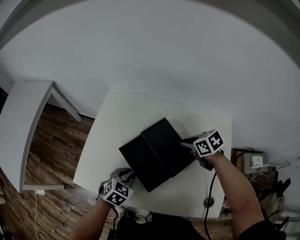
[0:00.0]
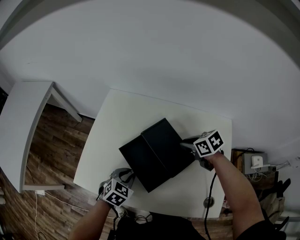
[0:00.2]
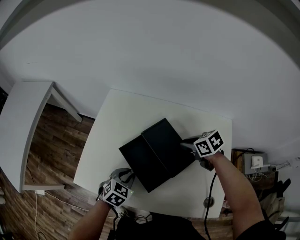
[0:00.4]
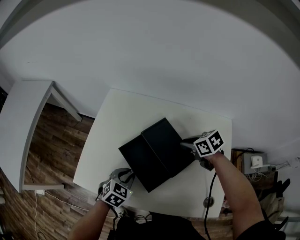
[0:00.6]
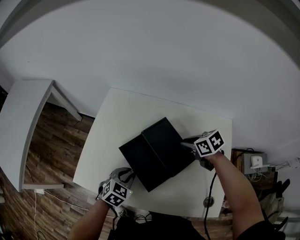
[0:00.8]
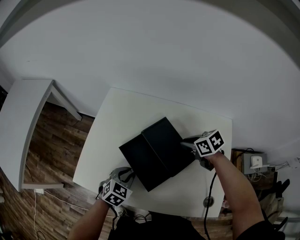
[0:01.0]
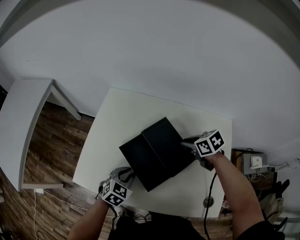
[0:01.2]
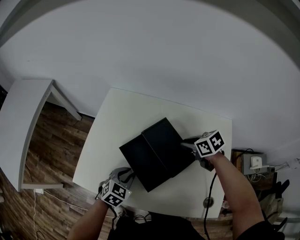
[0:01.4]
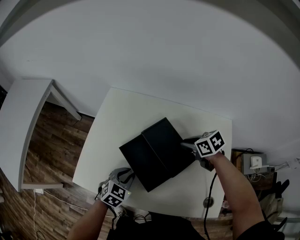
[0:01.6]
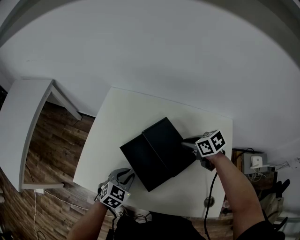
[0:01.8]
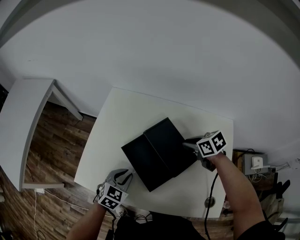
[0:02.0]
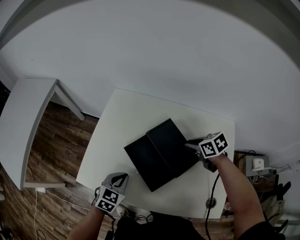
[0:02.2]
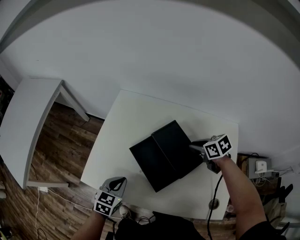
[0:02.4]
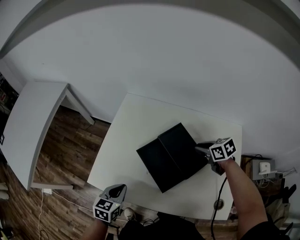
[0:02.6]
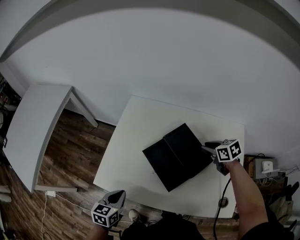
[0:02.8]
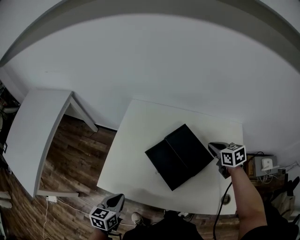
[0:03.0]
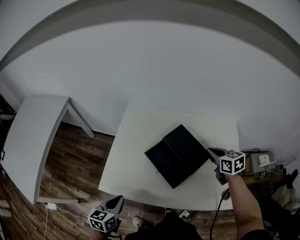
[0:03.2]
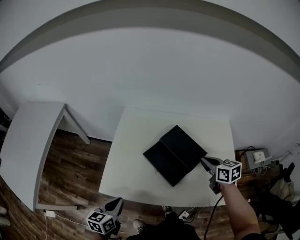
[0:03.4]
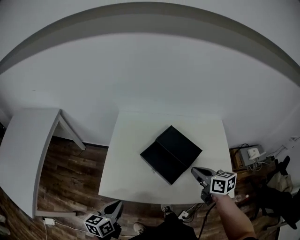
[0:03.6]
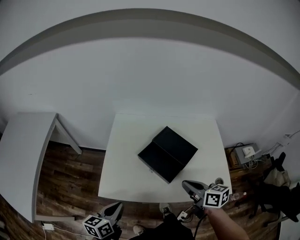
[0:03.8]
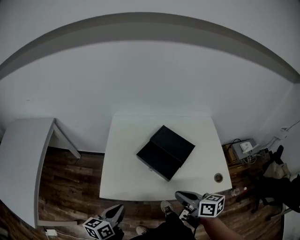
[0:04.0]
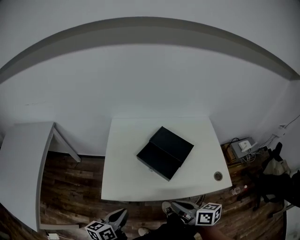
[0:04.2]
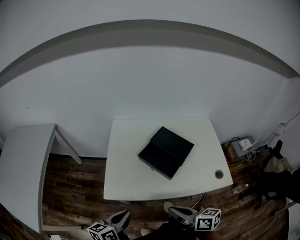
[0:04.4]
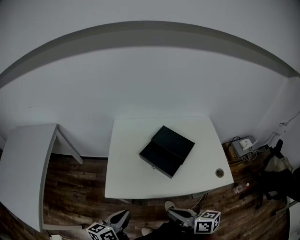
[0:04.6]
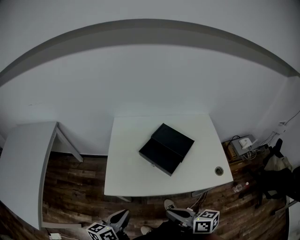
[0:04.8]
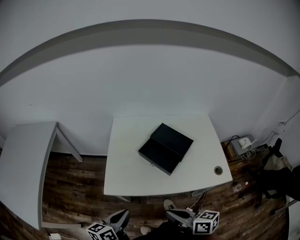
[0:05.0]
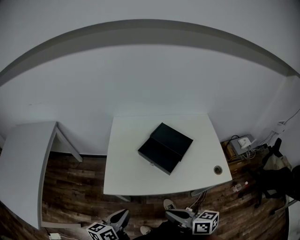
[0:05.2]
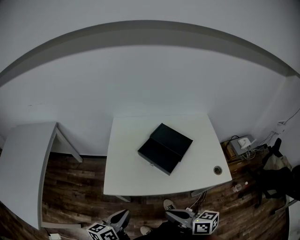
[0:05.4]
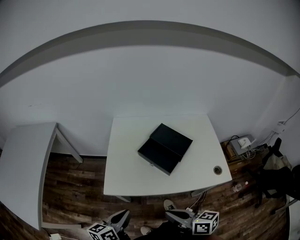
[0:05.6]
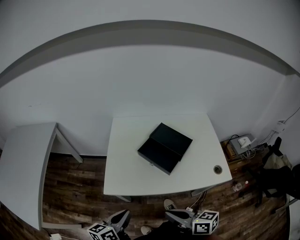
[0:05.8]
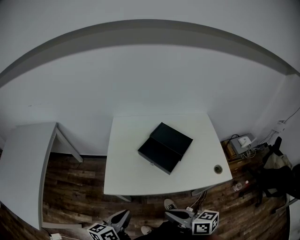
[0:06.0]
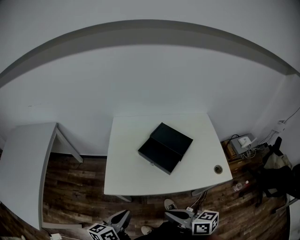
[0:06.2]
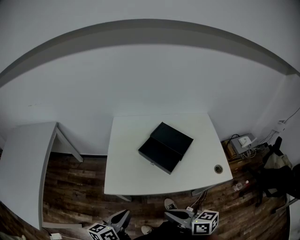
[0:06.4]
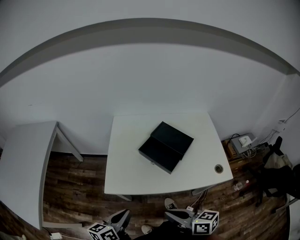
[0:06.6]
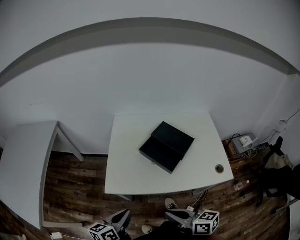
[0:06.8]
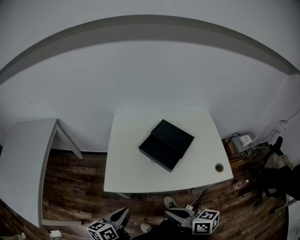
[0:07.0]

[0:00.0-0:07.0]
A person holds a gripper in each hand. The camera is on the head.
0:00.0 to 0:01.4: The grippers move only a little.
0:01.4 to 0:02.8: The left gripper travels to the left and backward by some 15 cm, and rotates about 40 degrees.
0:02.8 to 0:04.2: The right gripper is displaced backward and to the left by roughly 40 cm, turns by approximately 40 degrees, and closes up; the left gripper heads upward and backward, covering roughly 10 cm, and rotates some 30 degrees.
0:04.2 to 0:05.6: The right gripper moves backward and to the left, roughly 10 cm.
0:05.6 to 0:07.0: Neither gripper changes place.

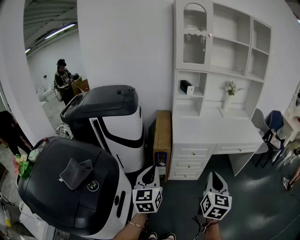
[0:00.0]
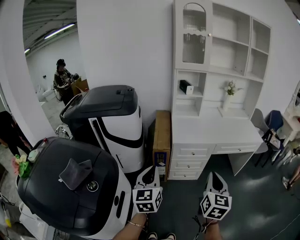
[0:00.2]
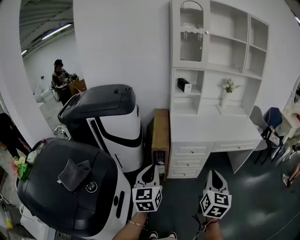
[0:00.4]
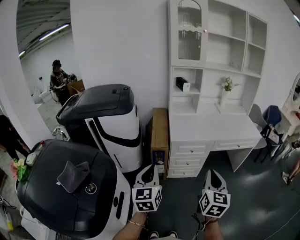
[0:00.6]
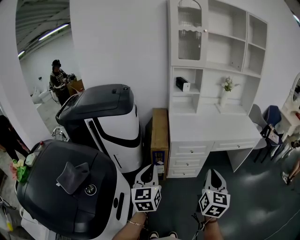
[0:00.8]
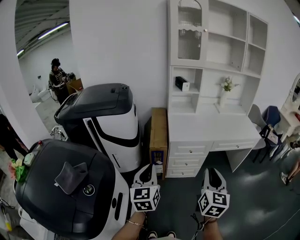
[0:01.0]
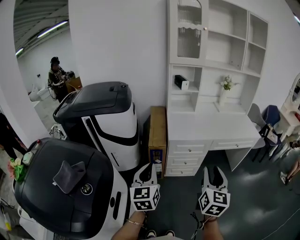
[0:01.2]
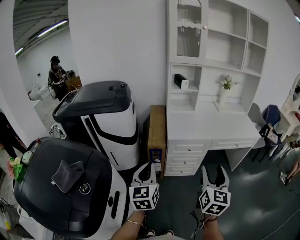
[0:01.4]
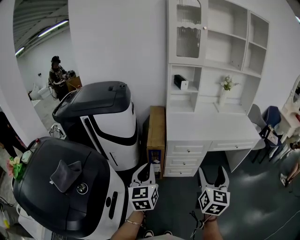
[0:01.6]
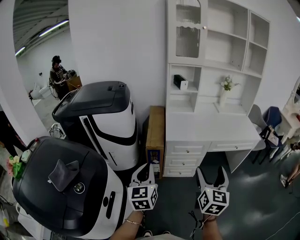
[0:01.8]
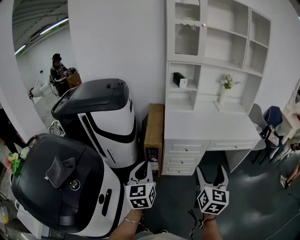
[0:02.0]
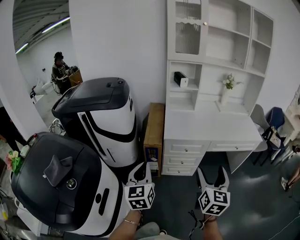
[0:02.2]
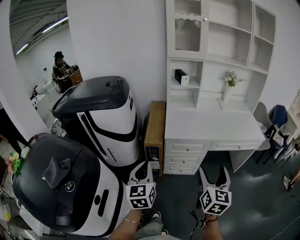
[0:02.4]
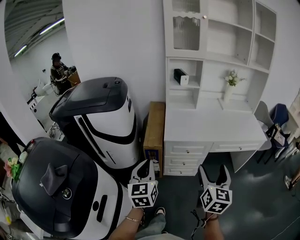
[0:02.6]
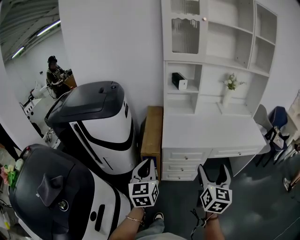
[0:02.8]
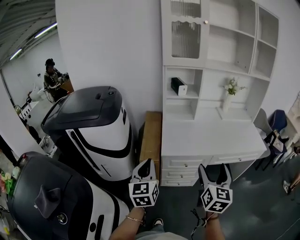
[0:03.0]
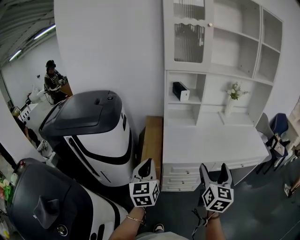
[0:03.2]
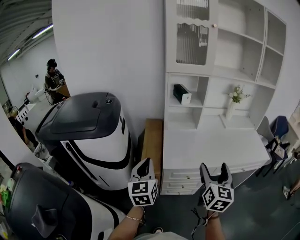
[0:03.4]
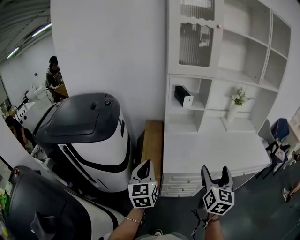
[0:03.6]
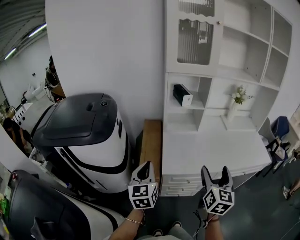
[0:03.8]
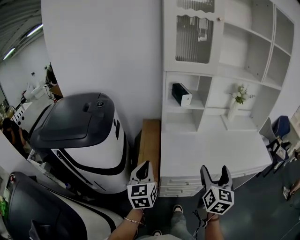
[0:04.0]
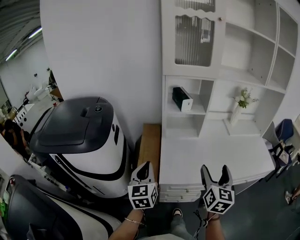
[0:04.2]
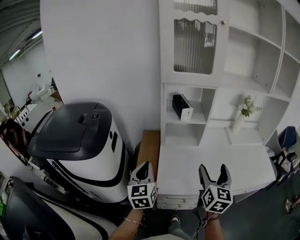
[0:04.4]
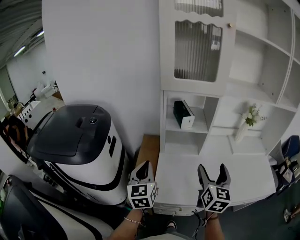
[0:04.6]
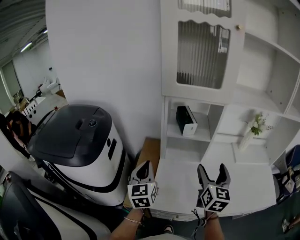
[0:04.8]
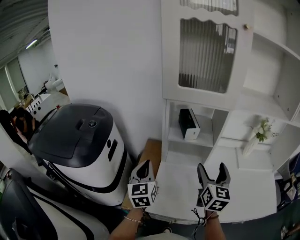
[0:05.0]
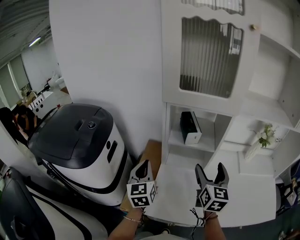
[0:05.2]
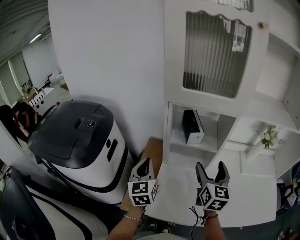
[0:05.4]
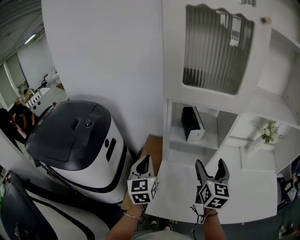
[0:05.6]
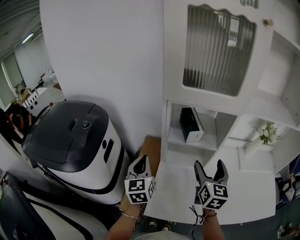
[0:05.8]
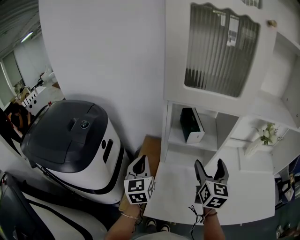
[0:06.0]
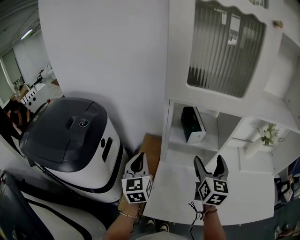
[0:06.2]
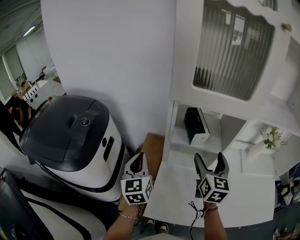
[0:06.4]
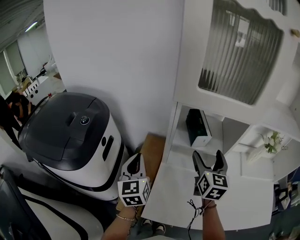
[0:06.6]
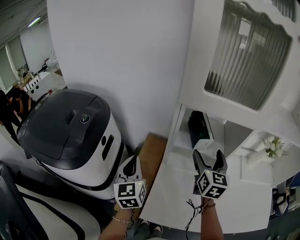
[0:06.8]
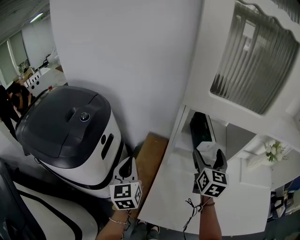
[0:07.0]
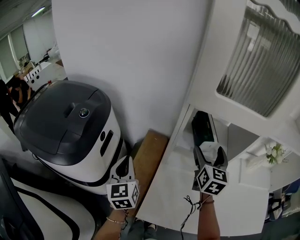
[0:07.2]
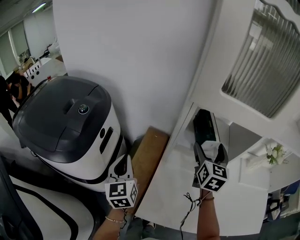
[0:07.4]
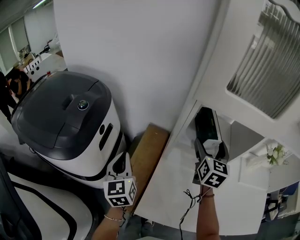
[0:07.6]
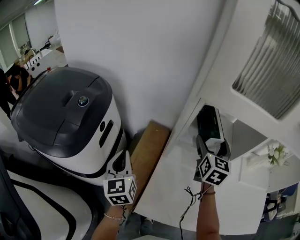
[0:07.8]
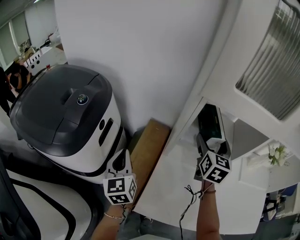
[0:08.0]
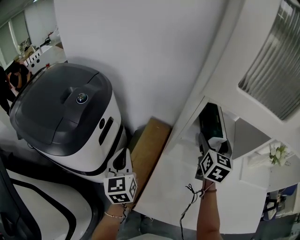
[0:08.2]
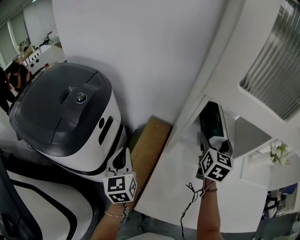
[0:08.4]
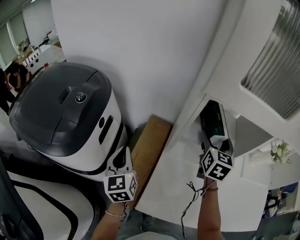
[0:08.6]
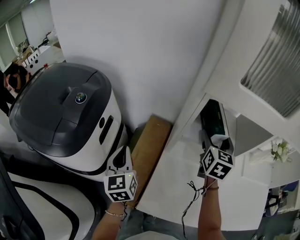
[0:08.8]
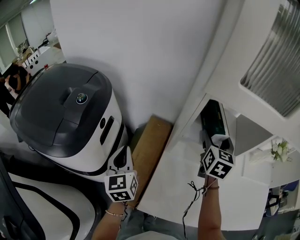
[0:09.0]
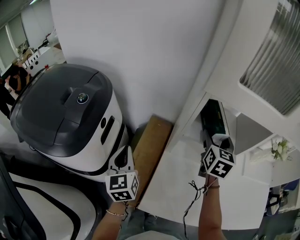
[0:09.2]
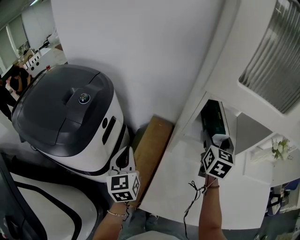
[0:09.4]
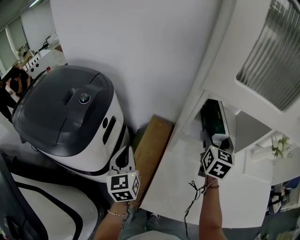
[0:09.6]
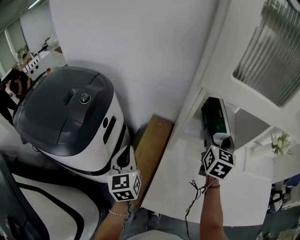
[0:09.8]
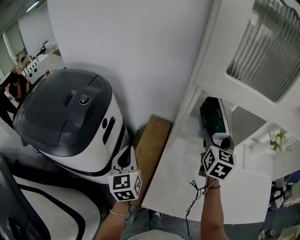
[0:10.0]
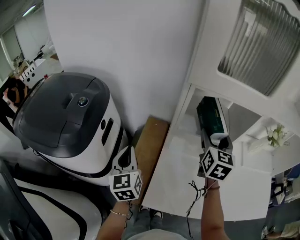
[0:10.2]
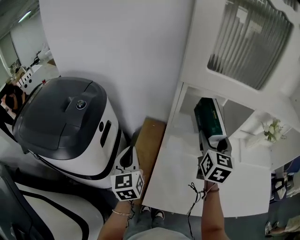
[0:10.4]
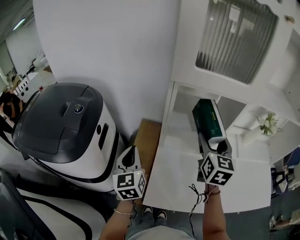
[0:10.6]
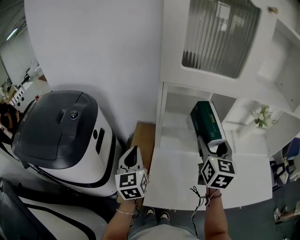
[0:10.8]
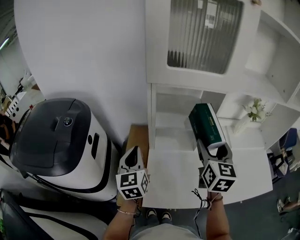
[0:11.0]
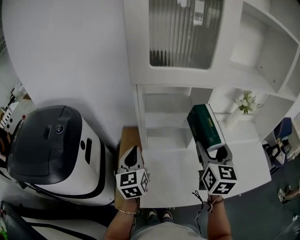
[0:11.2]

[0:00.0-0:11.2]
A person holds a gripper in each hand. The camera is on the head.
0:00.0 to 0:01.6: The right gripper opens up.
0:01.6 to 0:03.2: The grippers both shift forward by some 20 cm.
0:03.2 to 0:04.8: Both grippers travel together forward, approximately 35 cm.
0:04.8 to 0:06.4: The two grippers go some 15 cm forward.
0:06.4 to 0:08.0: The right gripper is displaced forward by roughly 10 cm. Meanwhile the left gripper goes some 10 cm to the left and downward.
0:08.0 to 0:09.6: Both grippers stay about where they are.
0:09.6 to 0:11.2: The right gripper heads backward and to the right, covering about 20 cm. Meanwhile the left gripper travels to the right by roughly 15 cm, and turns by approximately 20 degrees.

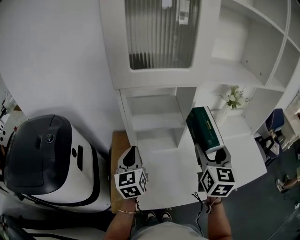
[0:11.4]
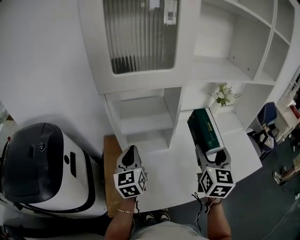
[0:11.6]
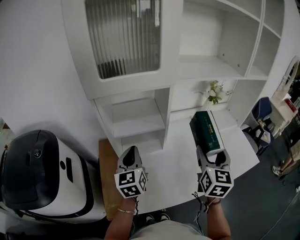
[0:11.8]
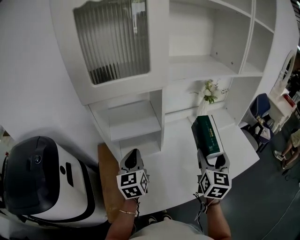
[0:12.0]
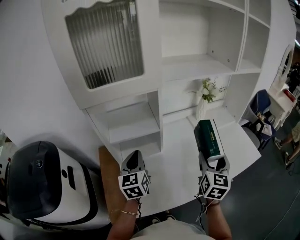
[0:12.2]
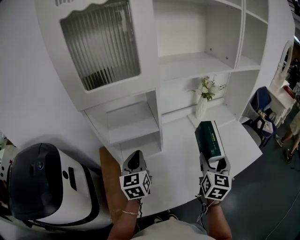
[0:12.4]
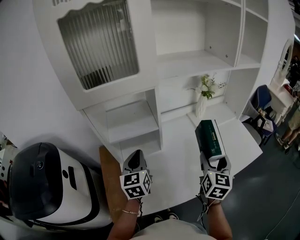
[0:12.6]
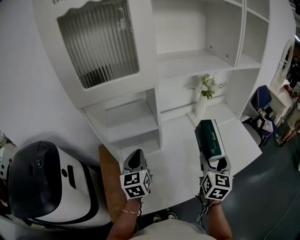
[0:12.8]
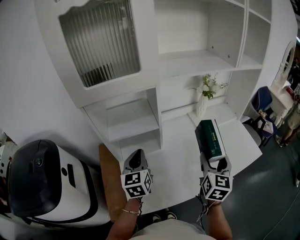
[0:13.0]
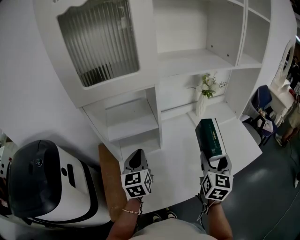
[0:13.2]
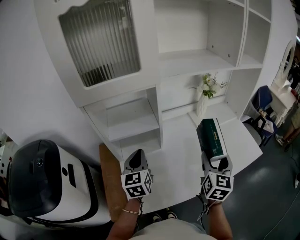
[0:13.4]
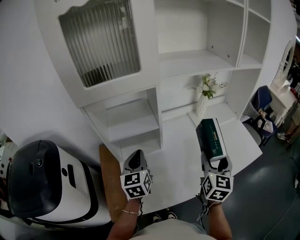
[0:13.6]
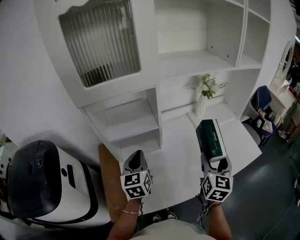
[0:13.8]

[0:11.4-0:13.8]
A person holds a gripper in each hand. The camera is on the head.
0:11.4 to 0:12.6: The right gripper is displaced to the right and downward by approximately 15 cm; the left gripper is displaced to the right by about 10 cm.
0:12.6 to 0:13.8: Both grippers stay about where they are.

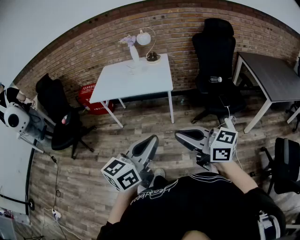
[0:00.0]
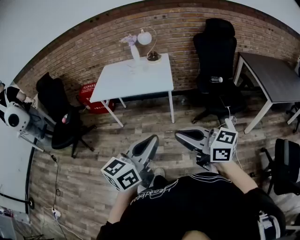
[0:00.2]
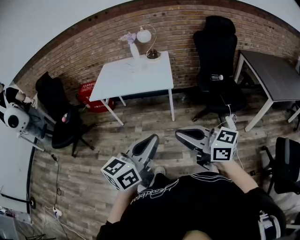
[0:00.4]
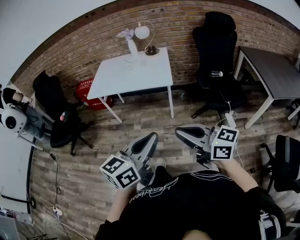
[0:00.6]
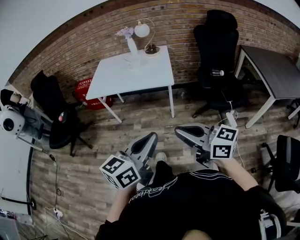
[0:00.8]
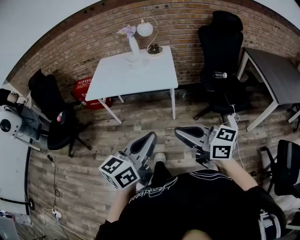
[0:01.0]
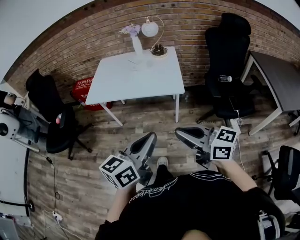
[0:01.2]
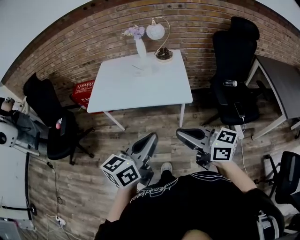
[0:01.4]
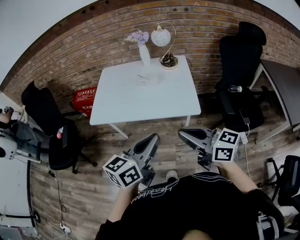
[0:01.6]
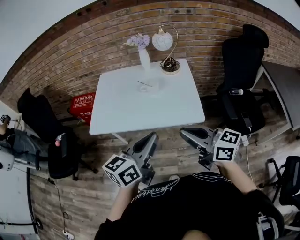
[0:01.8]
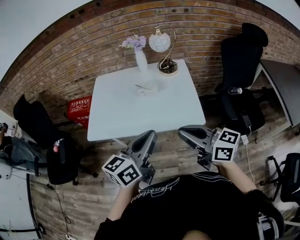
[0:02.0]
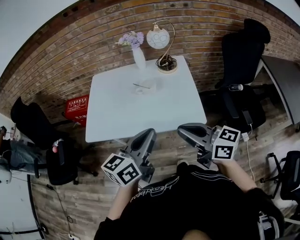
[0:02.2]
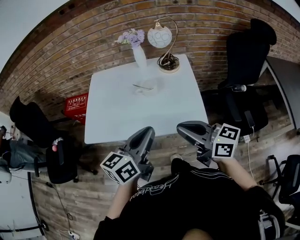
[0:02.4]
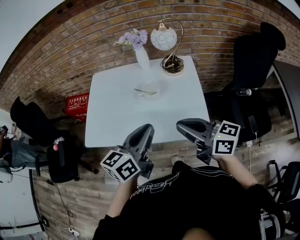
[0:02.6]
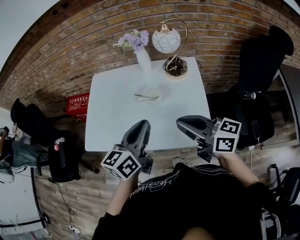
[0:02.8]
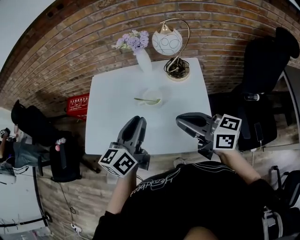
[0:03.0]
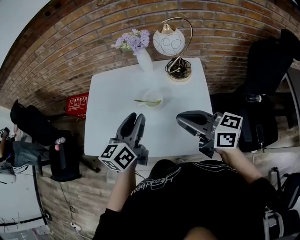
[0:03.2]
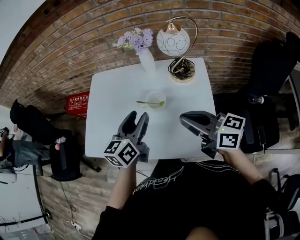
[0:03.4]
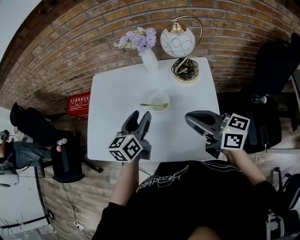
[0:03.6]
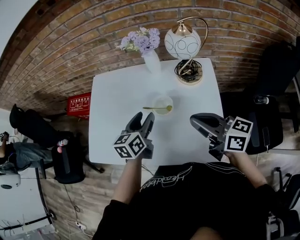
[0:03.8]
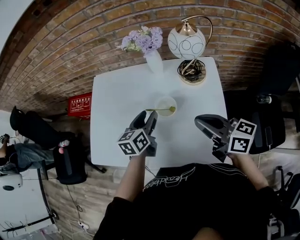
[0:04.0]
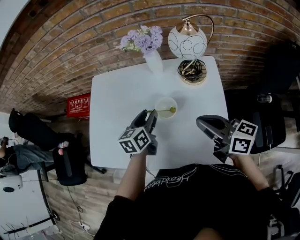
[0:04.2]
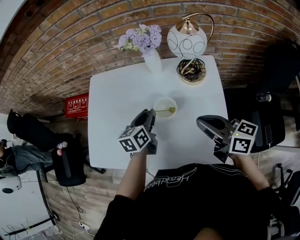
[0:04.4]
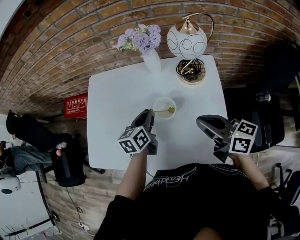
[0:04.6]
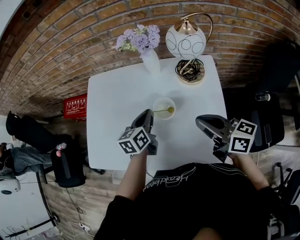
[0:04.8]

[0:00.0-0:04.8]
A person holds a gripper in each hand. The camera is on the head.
0:00.0 to 0:01.6: Both grippers move forward, roughly 40 cm.
0:01.6 to 0:03.2: Both grippers move forward, about 40 cm. The left gripper opens up.
0:03.2 to 0:04.8: The left gripper heads downward and forward, covering some 20 cm, and closes up. Meanwhile the right gripper moves forward and downward, some 10 cm.
